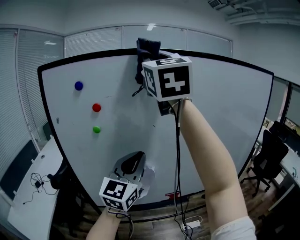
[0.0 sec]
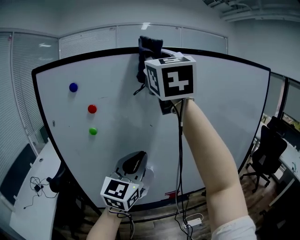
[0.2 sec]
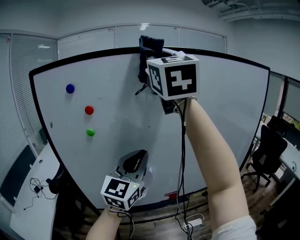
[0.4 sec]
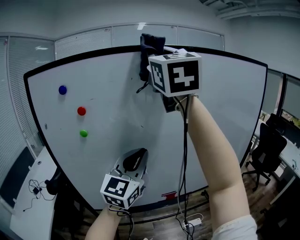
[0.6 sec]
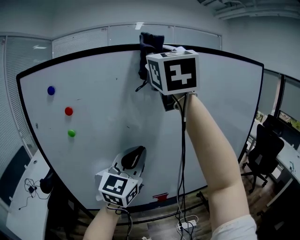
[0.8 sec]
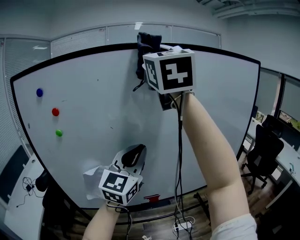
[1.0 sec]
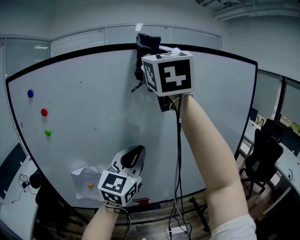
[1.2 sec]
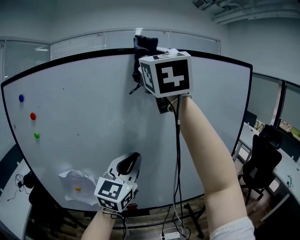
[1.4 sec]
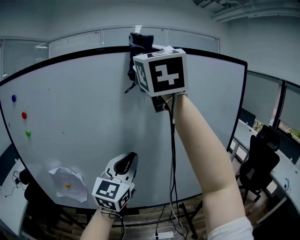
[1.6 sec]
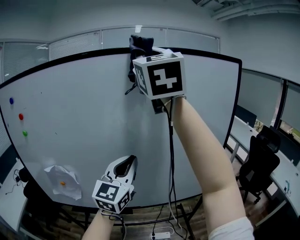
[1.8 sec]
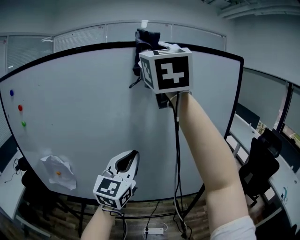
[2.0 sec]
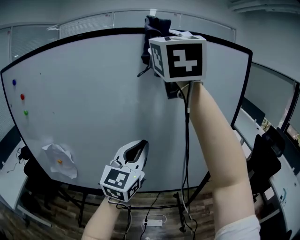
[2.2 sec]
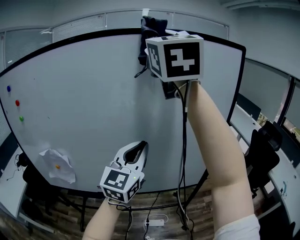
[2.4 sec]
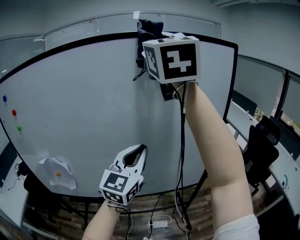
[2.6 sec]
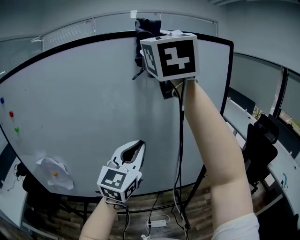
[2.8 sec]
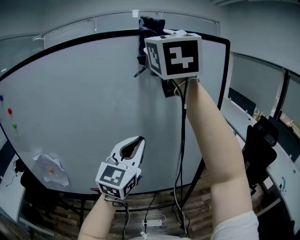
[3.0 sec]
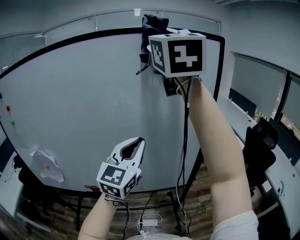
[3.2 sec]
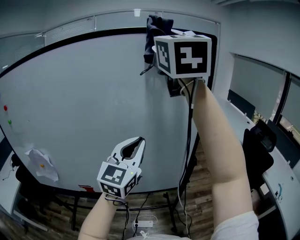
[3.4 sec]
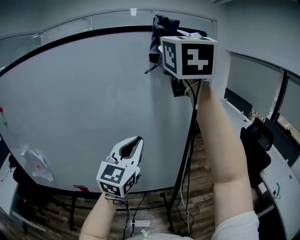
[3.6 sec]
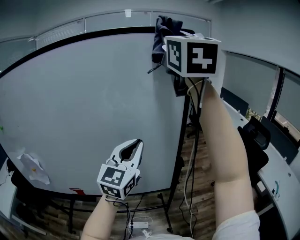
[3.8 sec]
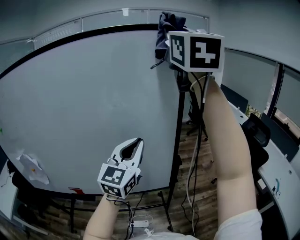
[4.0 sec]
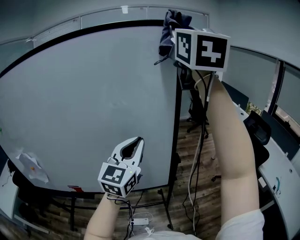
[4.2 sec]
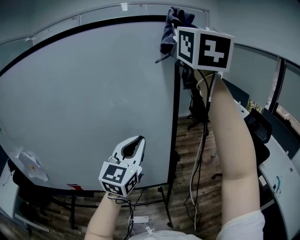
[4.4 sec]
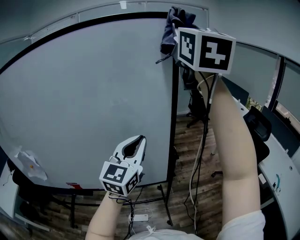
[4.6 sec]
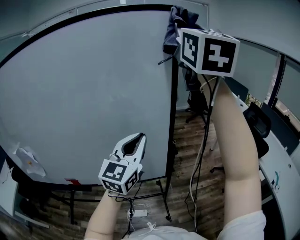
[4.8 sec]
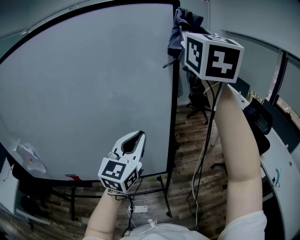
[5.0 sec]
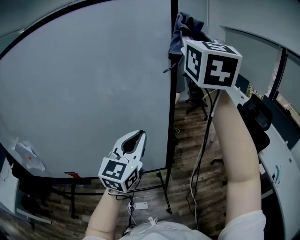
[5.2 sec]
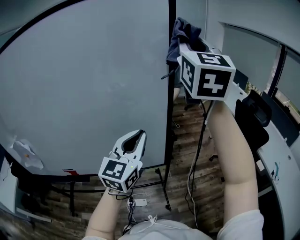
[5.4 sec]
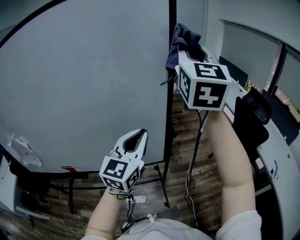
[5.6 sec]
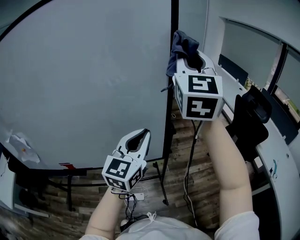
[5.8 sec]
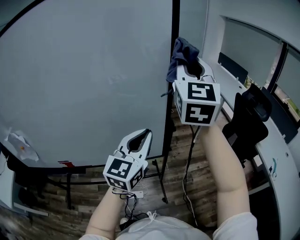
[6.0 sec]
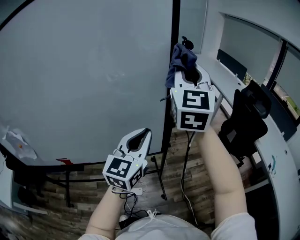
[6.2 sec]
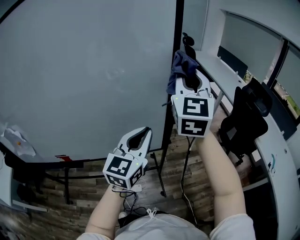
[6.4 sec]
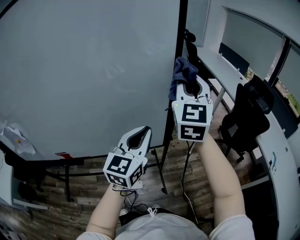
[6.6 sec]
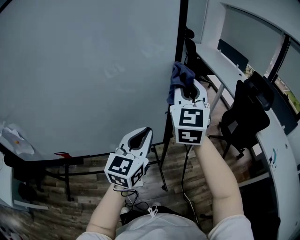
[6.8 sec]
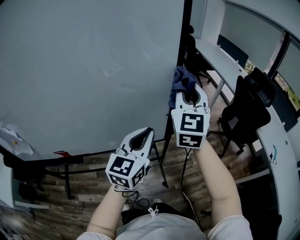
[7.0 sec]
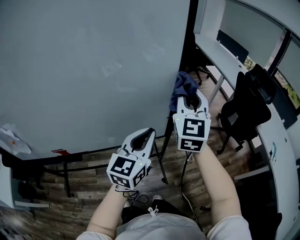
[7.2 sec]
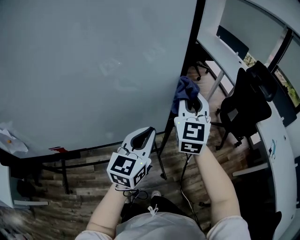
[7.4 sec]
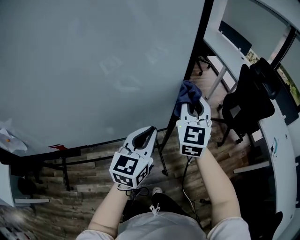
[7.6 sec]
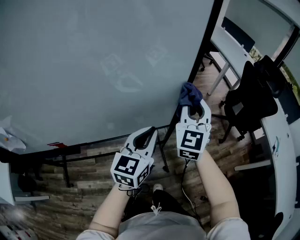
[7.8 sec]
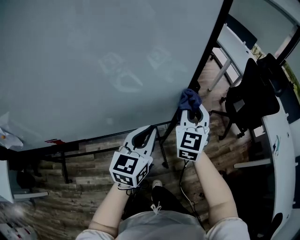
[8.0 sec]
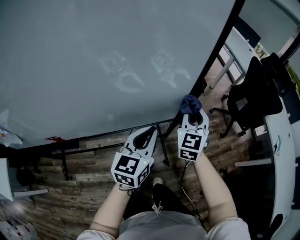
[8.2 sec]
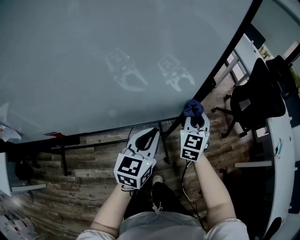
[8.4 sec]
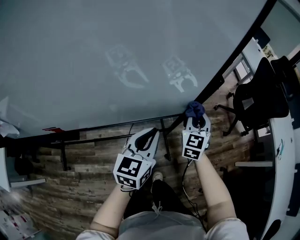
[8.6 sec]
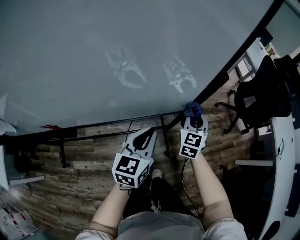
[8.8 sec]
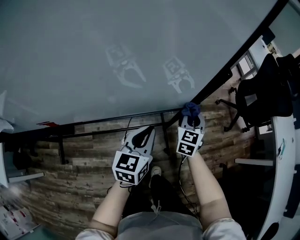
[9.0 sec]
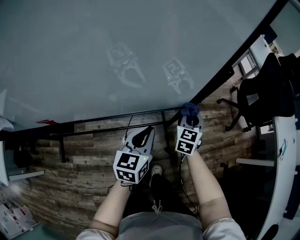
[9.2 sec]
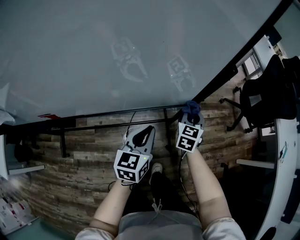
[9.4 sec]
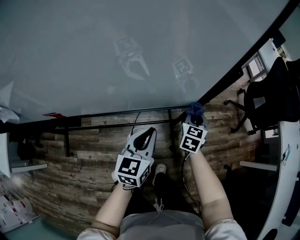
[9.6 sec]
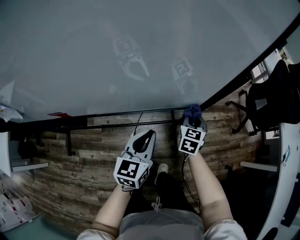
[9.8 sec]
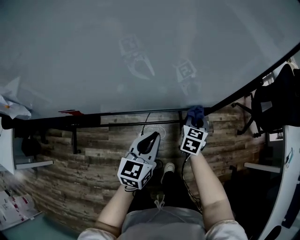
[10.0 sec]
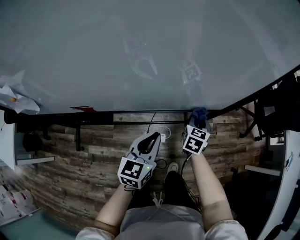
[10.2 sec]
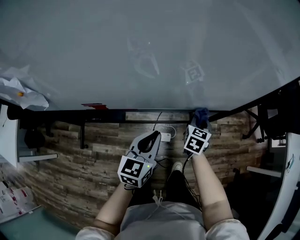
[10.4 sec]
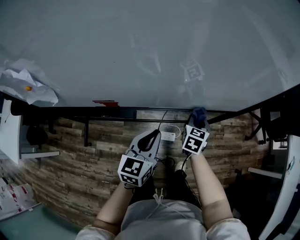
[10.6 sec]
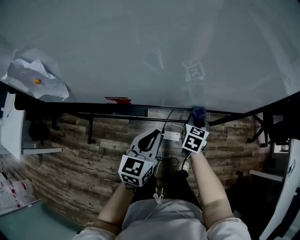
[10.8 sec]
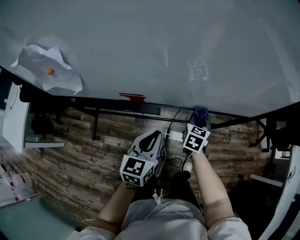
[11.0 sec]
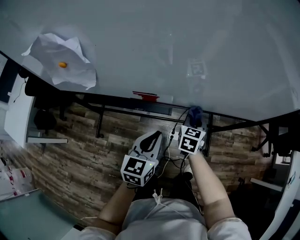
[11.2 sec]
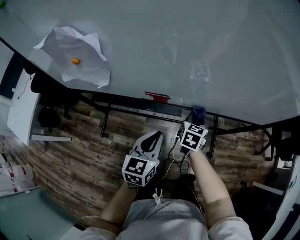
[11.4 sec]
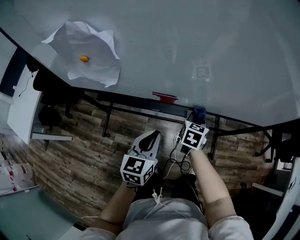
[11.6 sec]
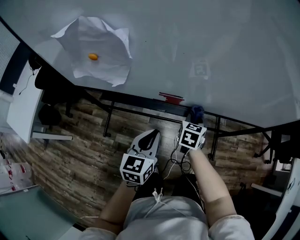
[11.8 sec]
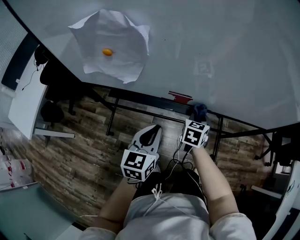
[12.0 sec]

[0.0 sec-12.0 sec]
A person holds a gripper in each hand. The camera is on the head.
0.0 sec to 1.6 sec: The grippers both shift to the right by approximately 30 cm.
1.6 sec to 3.0 sec: The grippers both shift to the right by about 15 cm.
3.0 sec to 4.4 sec: Both grippers travel together to the right, some 20 cm.
4.4 sec to 6.0 sec: The right gripper heads downward, covering roughly 25 cm; the left gripper travels downward and to the right by about 10 cm.
6.0 sec to 7.6 sec: The left gripper shifts roughly 15 cm downward. The right gripper heads downward, covering about 30 cm.
7.6 sec to 9.0 sec: The left gripper shifts approximately 15 cm downward; the right gripper is displaced downward by some 30 cm, and turns by roughly 20 degrees.
9.0 sec to 10.4 sec: Both grippers move to the left and backward, some 20 cm.
10.4 sec to 12.0 sec: The right gripper moves to the left, some 35 cm. The left gripper travels to the left and backward by some 30 cm.

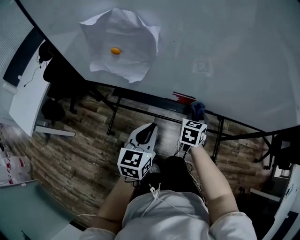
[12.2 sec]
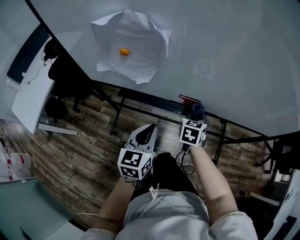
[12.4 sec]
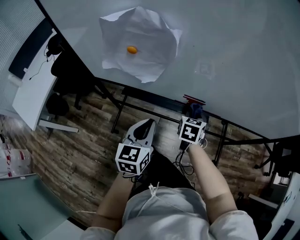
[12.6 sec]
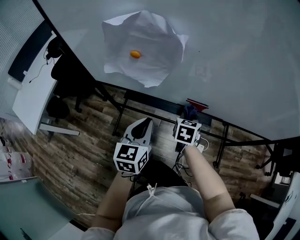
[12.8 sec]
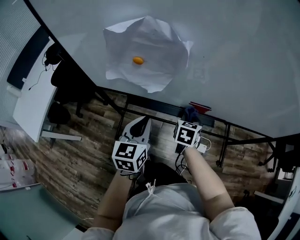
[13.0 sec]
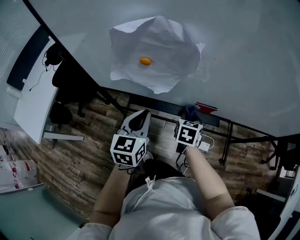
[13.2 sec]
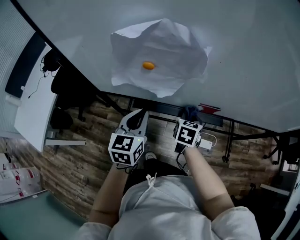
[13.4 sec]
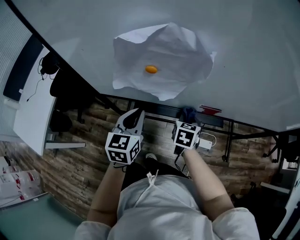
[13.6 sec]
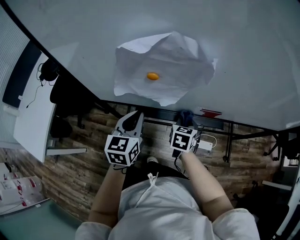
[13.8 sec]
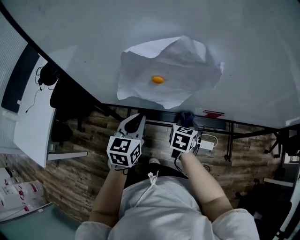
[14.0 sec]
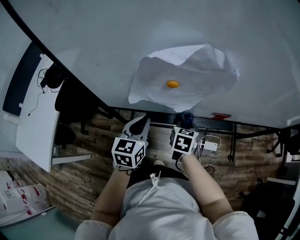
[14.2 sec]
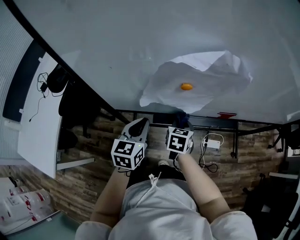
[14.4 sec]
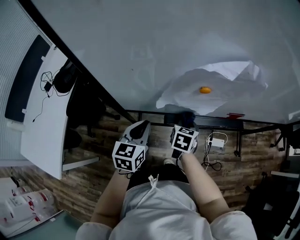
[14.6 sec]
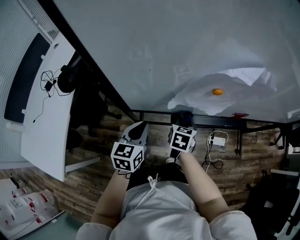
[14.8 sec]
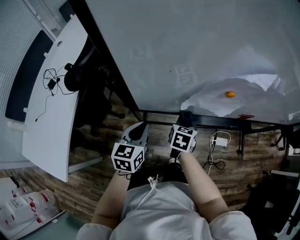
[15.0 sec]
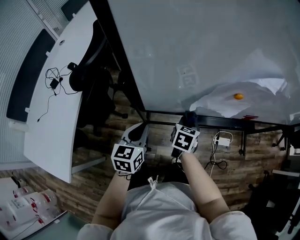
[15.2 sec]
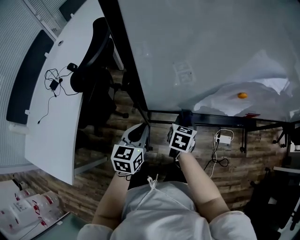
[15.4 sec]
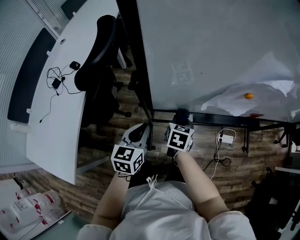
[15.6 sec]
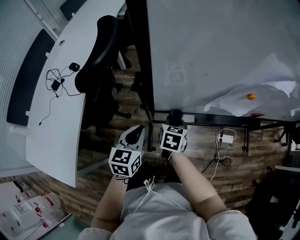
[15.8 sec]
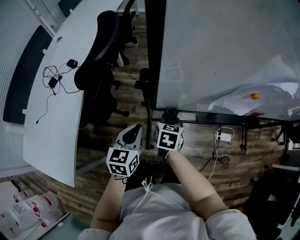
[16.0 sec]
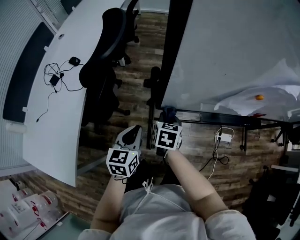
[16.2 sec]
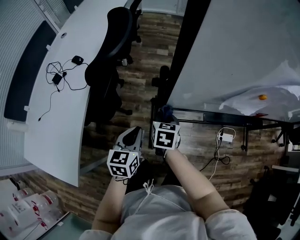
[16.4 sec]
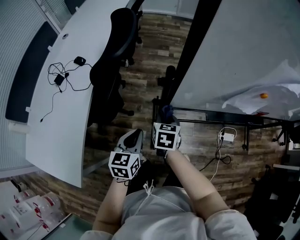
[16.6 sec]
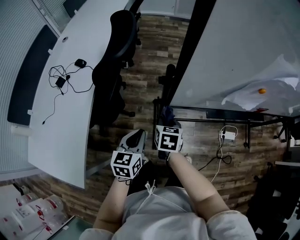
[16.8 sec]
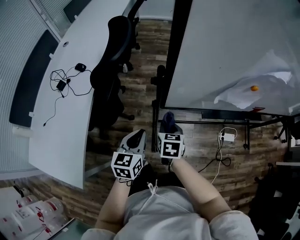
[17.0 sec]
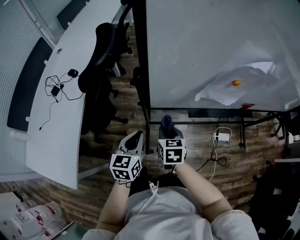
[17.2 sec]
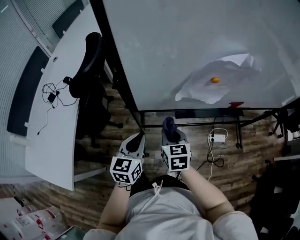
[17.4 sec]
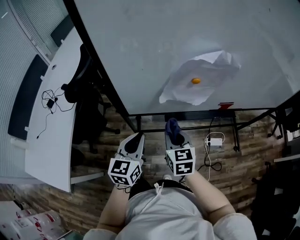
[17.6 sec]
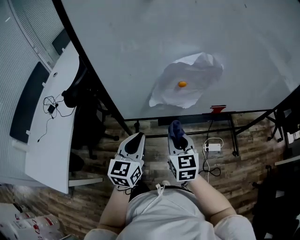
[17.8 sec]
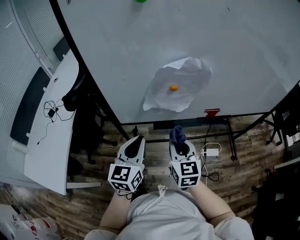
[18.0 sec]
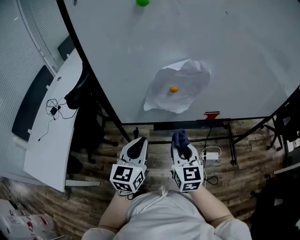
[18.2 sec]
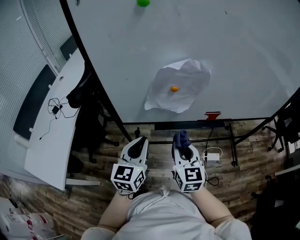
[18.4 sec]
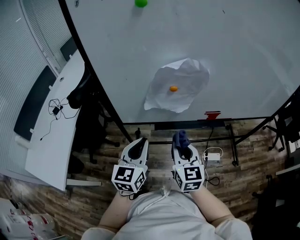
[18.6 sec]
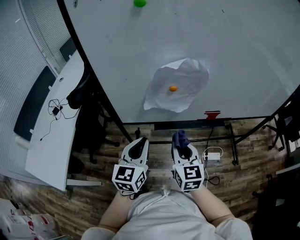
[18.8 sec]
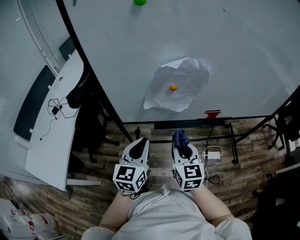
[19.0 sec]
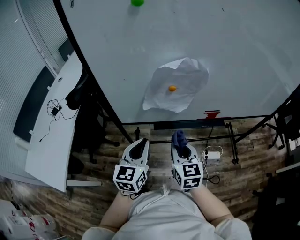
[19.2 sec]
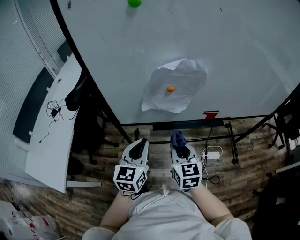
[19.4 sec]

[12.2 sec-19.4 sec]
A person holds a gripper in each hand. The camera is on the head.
12.2 sec to 13.6 sec: The two grippers go about 15 cm to the left.
13.6 sec to 15.0 sec: Both grippers travel together to the left, approximately 20 cm.
15.0 sec to 16.6 sec: The left gripper goes about 15 cm to the left and backward. The right gripper goes some 20 cm to the left.
16.6 sec to 18.0 sec: Both grippers move to the right and upward, approximately 30 cm. The right gripper turns by roughly 30 degrees. The left gripper swivels about 20 degrees.
18.0 sec to 19.4 sec: There are only small adjustments of the grippers.

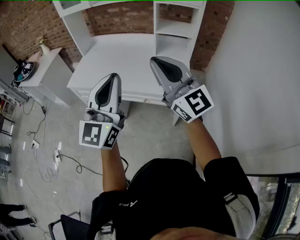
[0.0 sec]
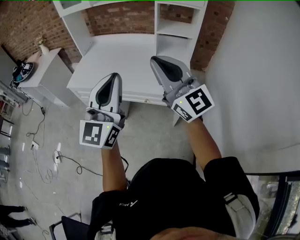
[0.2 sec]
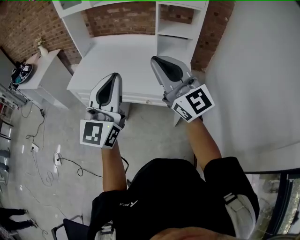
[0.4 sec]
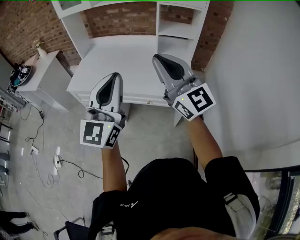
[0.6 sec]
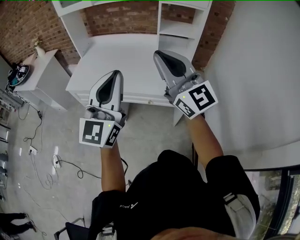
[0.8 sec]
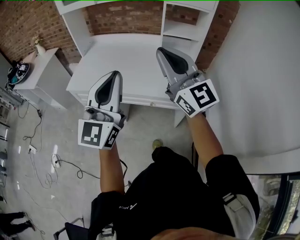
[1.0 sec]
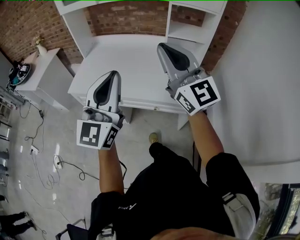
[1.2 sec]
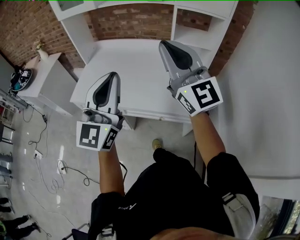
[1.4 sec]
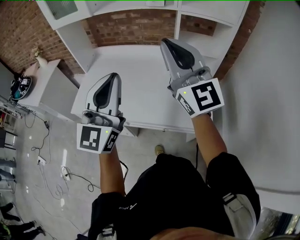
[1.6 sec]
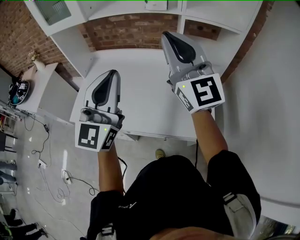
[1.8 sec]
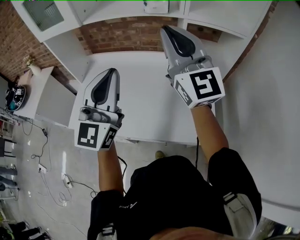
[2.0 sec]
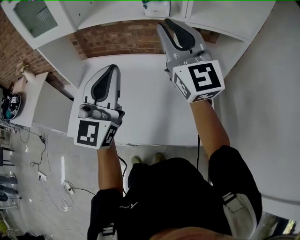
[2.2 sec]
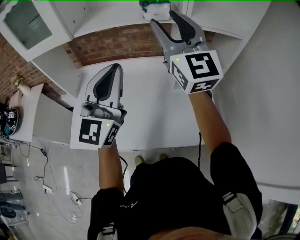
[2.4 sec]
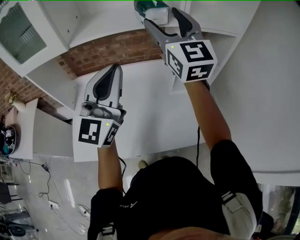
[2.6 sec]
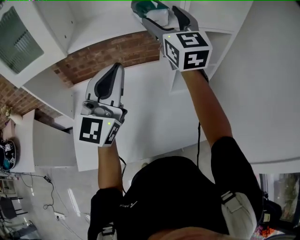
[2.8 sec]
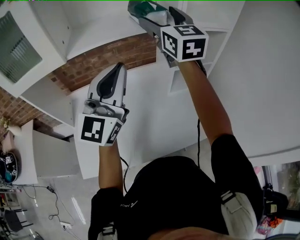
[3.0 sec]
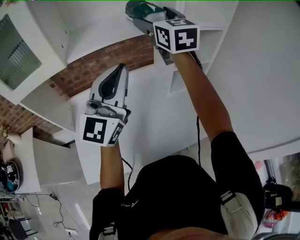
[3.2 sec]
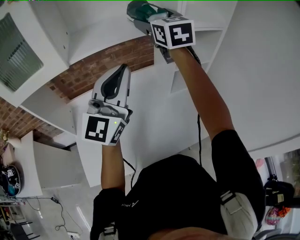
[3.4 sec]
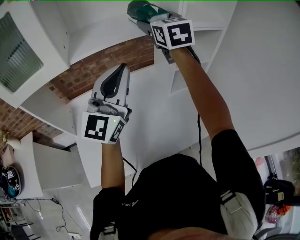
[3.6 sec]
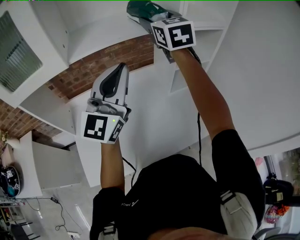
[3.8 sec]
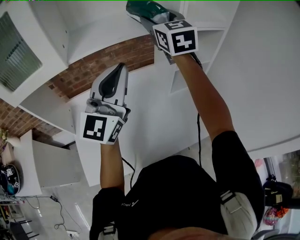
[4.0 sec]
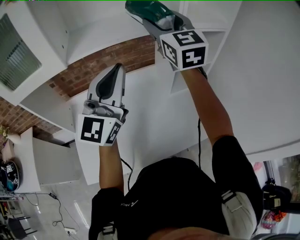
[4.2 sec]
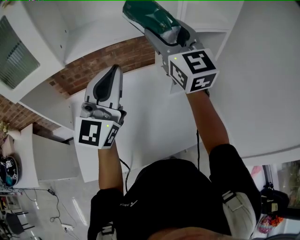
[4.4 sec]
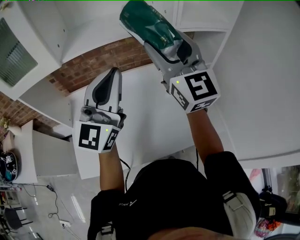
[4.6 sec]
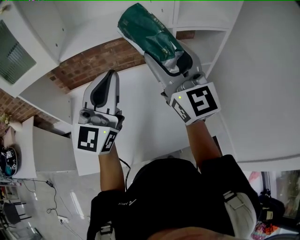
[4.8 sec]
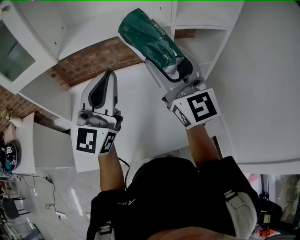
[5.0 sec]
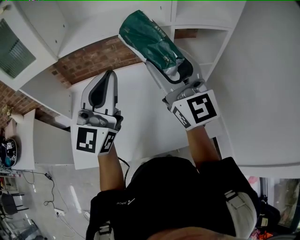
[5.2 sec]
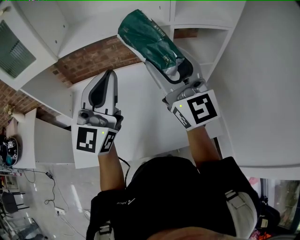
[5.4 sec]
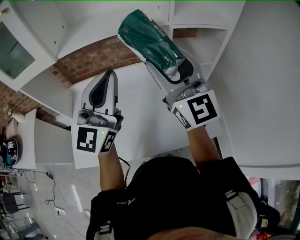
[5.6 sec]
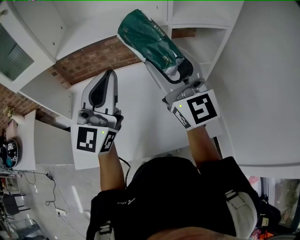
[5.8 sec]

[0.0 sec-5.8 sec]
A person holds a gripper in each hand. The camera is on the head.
0.0 sec to 1.4 sec: The right gripper moves forward, some 20 cm; the left gripper goes approximately 20 cm forward and to the left.
1.4 sec to 2.8 sec: The right gripper ends up roughly 40 cm from where it was, rotates approximately 40 degrees, and opens its fingers. Meanwhile the left gripper ends up roughly 35 cm from where it was, and changes its angle by some 30 degrees.
4.4 sec to 5.8 sec: The right gripper heads backward, to the right and downward, covering some 10 cm. Meanwhile the left gripper moves to the right, roughly 5 cm.
